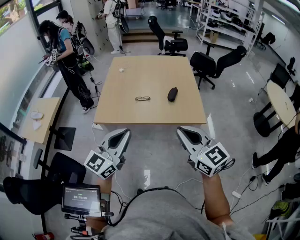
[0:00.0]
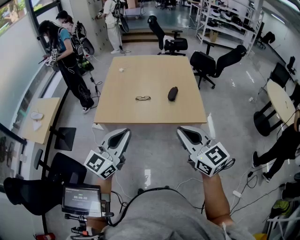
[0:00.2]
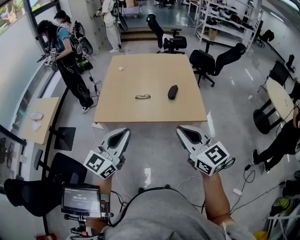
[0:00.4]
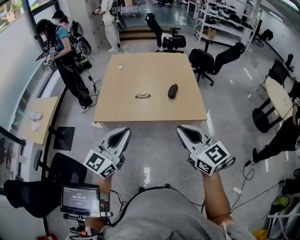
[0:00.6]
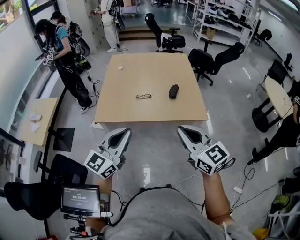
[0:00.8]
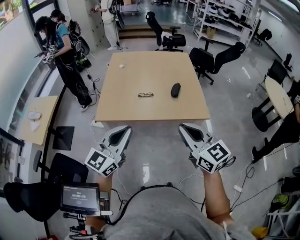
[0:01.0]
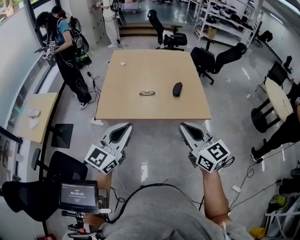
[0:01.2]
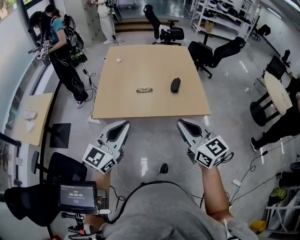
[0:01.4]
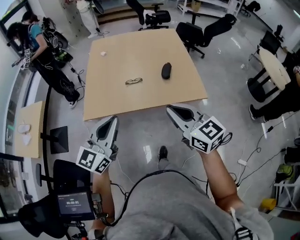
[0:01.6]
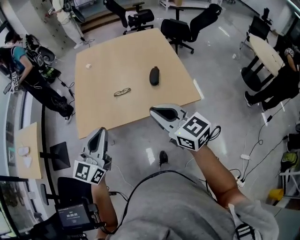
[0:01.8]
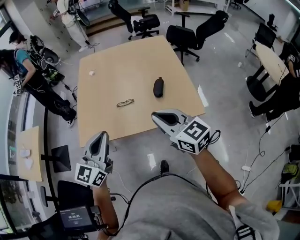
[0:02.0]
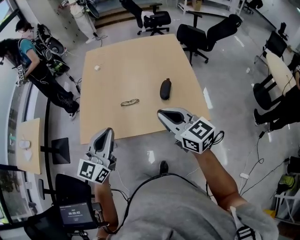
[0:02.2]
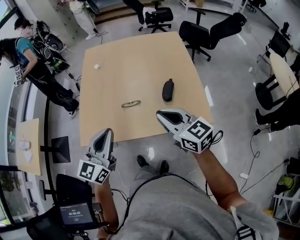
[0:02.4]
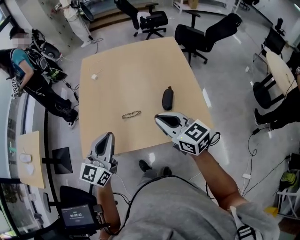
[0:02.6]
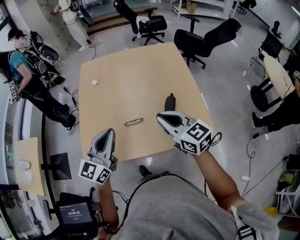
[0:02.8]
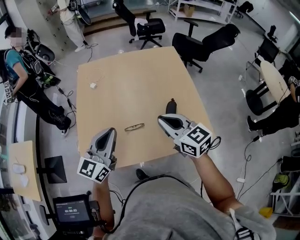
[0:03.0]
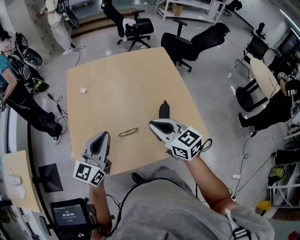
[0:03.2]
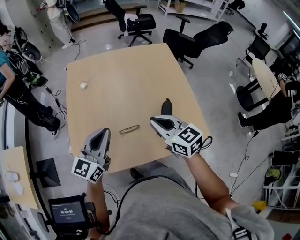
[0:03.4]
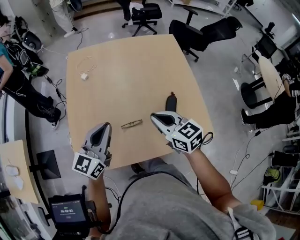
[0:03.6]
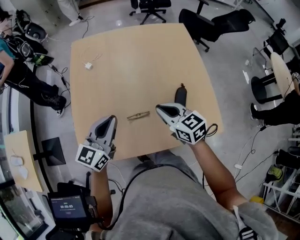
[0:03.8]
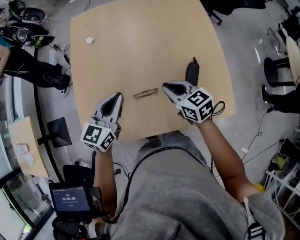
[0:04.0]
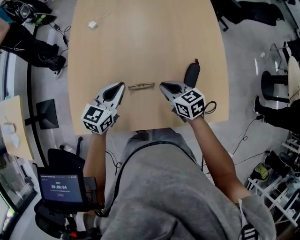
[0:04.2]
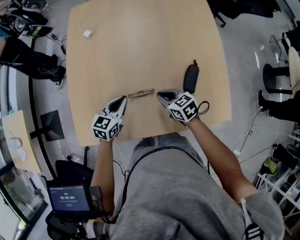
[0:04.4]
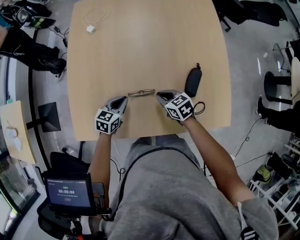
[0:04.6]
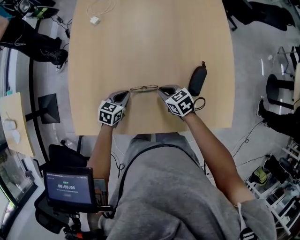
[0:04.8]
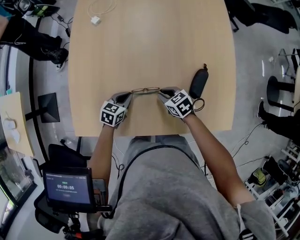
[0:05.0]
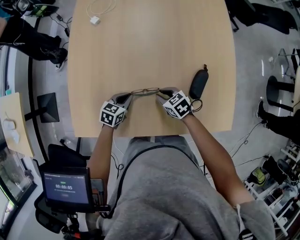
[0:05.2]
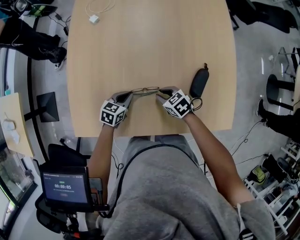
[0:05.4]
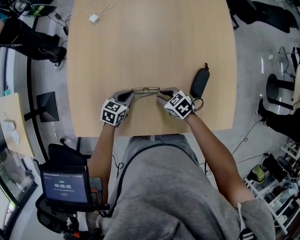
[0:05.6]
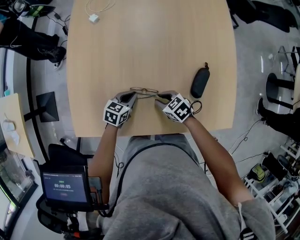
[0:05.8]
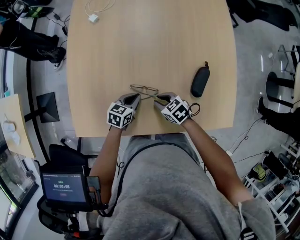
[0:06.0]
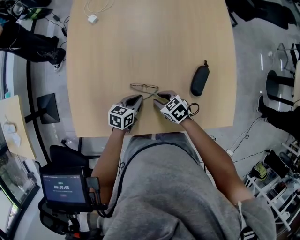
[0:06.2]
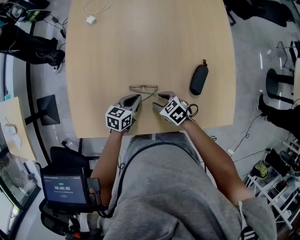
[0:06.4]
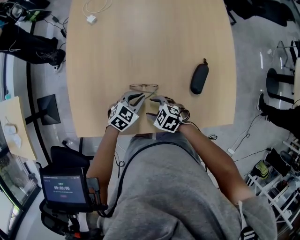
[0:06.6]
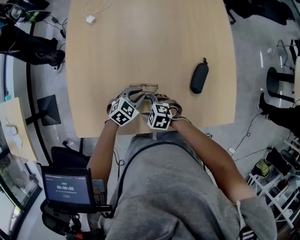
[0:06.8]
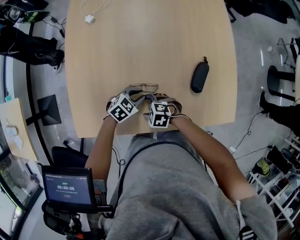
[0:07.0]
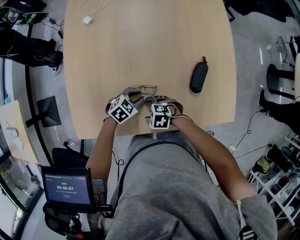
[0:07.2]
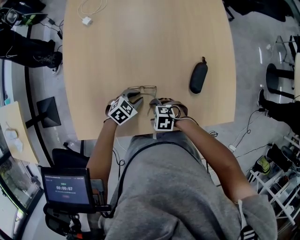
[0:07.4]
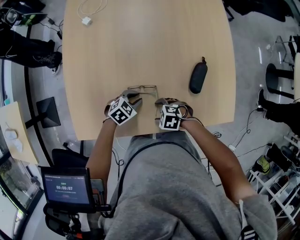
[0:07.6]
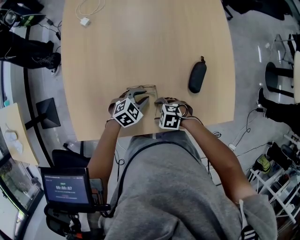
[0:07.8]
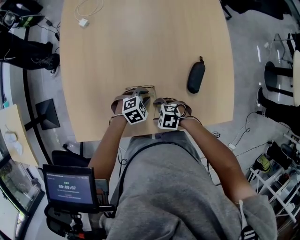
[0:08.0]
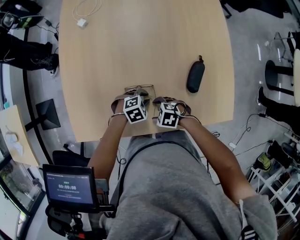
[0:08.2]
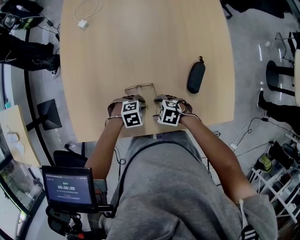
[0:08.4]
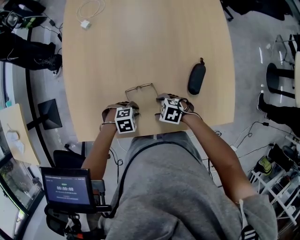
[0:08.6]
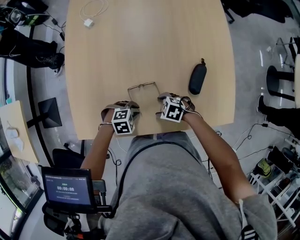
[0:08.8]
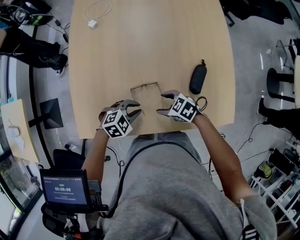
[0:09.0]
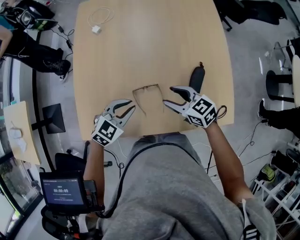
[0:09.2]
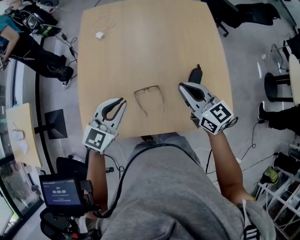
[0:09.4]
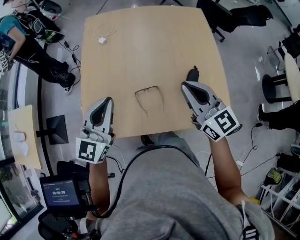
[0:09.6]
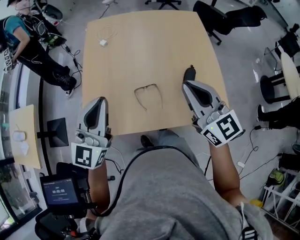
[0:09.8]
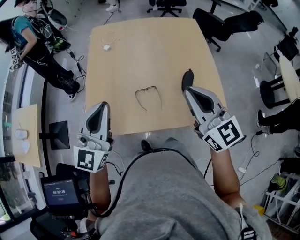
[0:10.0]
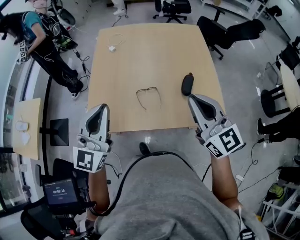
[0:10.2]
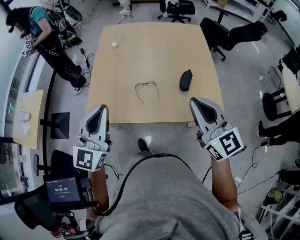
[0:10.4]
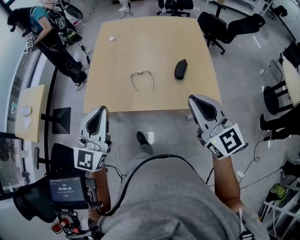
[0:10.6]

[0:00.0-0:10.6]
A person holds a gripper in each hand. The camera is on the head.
0:00.0 to 0:01.6: The right gripper heads forward, to the left and downward, covering approximately 15 cm; the left gripper heads forward and to the left, covering roughly 15 cm.
0:01.6 to 0:03.0: Both grippers move forward, some 35 cm.
0:03.0 to 0:04.6: The two grippers go approximately 35 cm downward. The left gripper tips its fingers downward by approximately 40 degrees. The right gripper angles its fingers downward, by about 30 degrees.
0:04.6 to 0:06.0: Both grippers travel together downward, approximately 5 cm.
0:06.0 to 0:07.6: The right gripper moves approximately 10 cm, rotates roughly 40 degrees, and opens up. Meanwhile the left gripper rotates approximately 40 degrees.
0:07.6 to 0:09.0: Both grippers travel together upward, about 5 cm. The right gripper rotates some 20 degrees.
0:09.0 to 0:10.6: Both grippers travel together upward, some 40 cm. The right gripper tilts its fingers about 50 degrees upward, and closes; the left gripper tips its fingers upward by about 60 degrees.

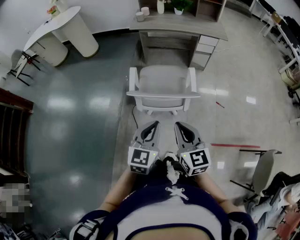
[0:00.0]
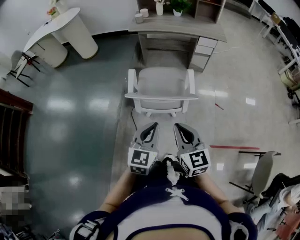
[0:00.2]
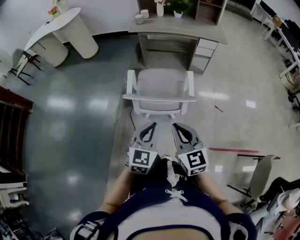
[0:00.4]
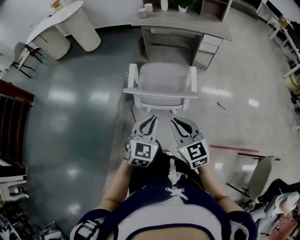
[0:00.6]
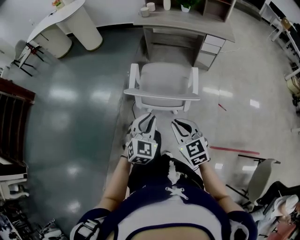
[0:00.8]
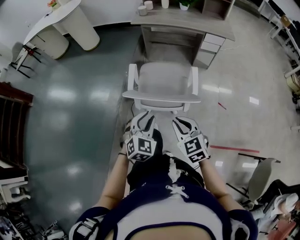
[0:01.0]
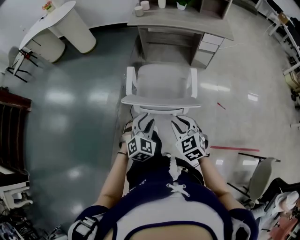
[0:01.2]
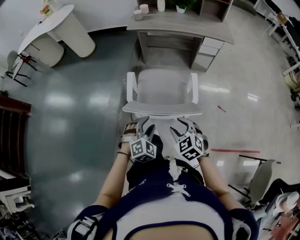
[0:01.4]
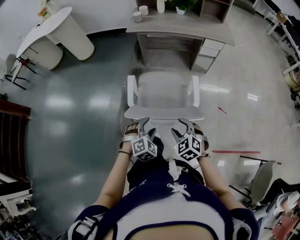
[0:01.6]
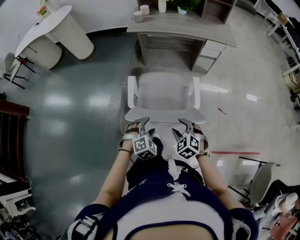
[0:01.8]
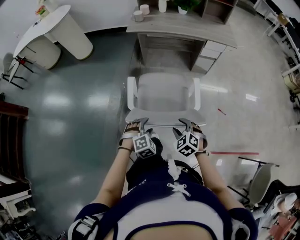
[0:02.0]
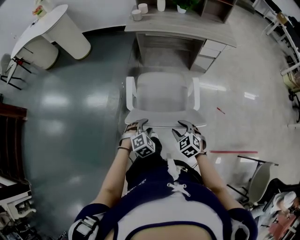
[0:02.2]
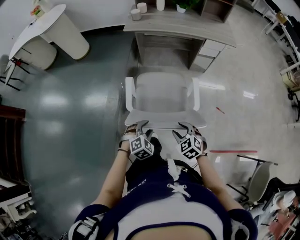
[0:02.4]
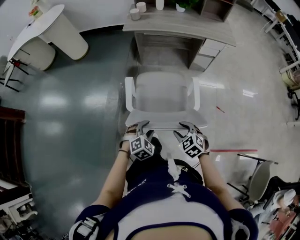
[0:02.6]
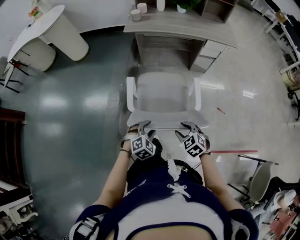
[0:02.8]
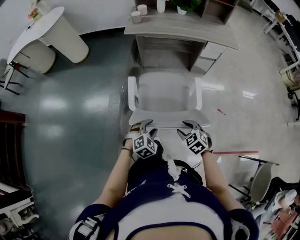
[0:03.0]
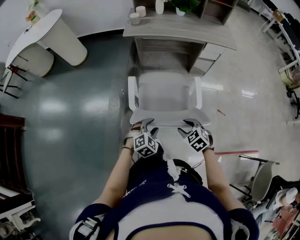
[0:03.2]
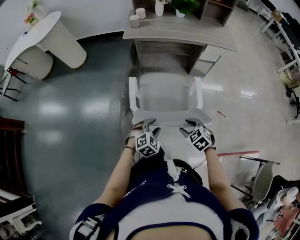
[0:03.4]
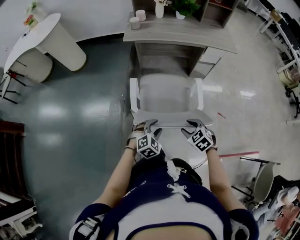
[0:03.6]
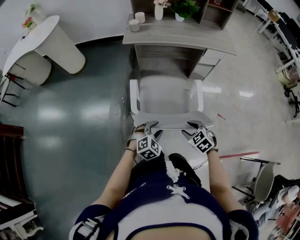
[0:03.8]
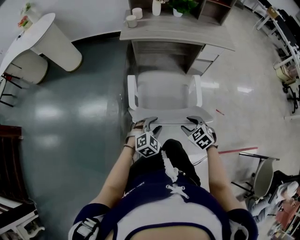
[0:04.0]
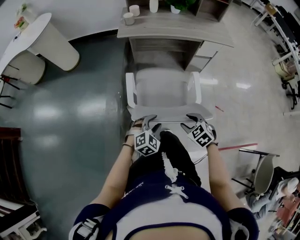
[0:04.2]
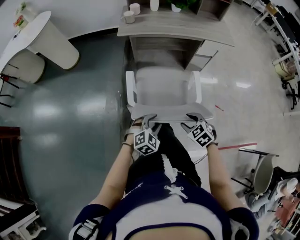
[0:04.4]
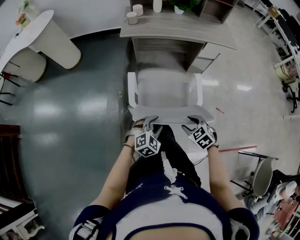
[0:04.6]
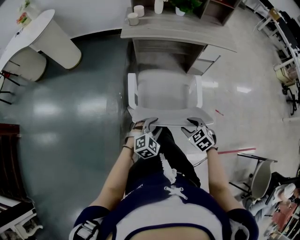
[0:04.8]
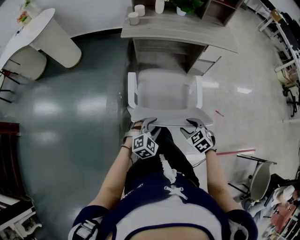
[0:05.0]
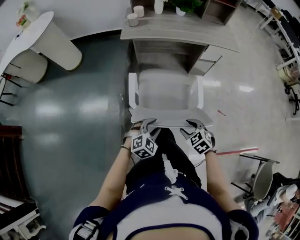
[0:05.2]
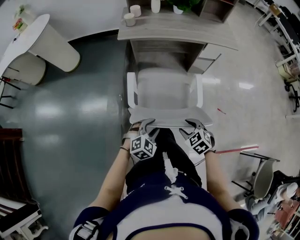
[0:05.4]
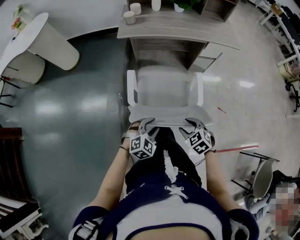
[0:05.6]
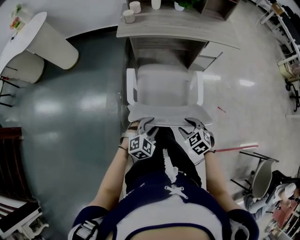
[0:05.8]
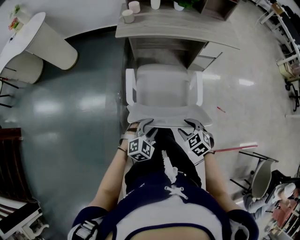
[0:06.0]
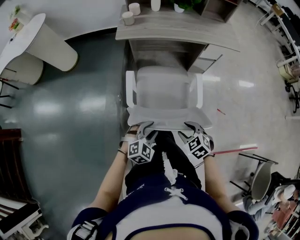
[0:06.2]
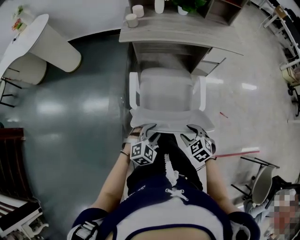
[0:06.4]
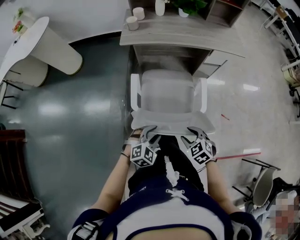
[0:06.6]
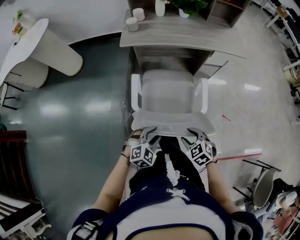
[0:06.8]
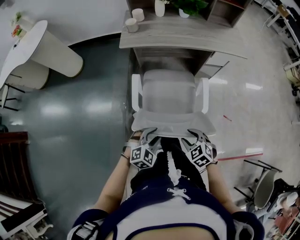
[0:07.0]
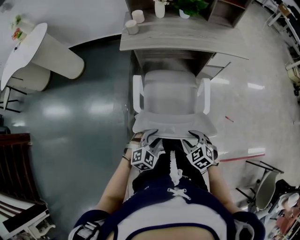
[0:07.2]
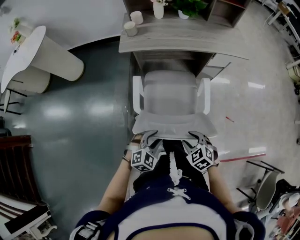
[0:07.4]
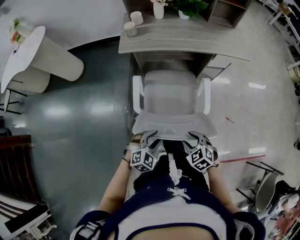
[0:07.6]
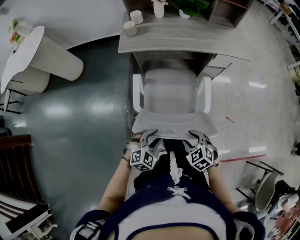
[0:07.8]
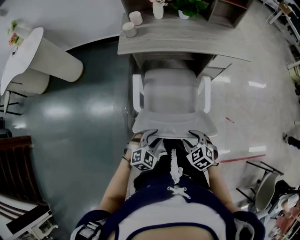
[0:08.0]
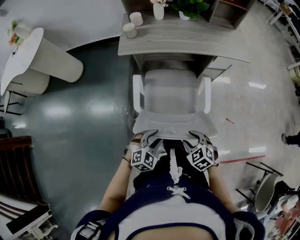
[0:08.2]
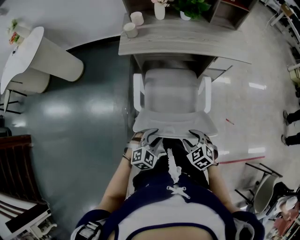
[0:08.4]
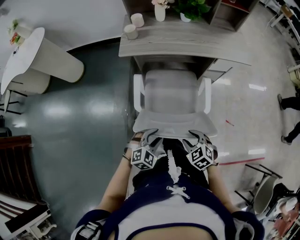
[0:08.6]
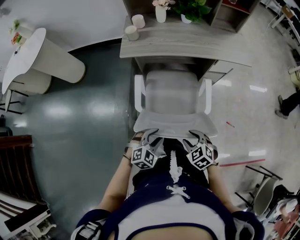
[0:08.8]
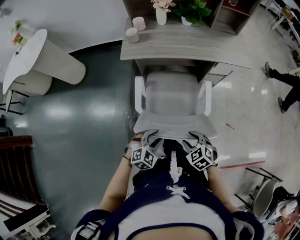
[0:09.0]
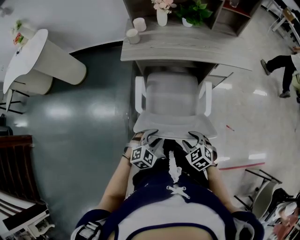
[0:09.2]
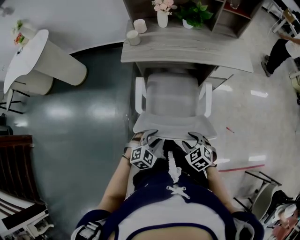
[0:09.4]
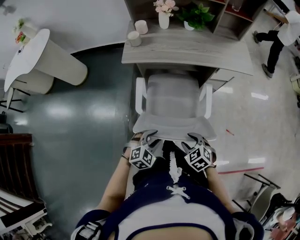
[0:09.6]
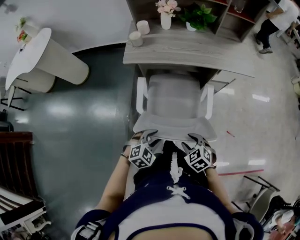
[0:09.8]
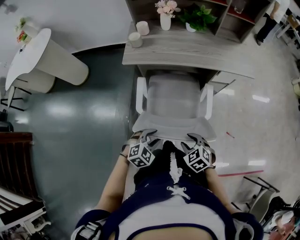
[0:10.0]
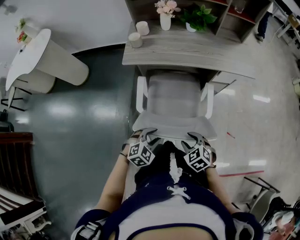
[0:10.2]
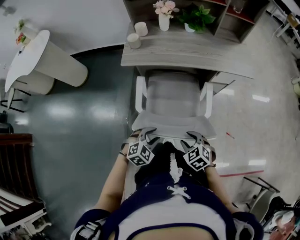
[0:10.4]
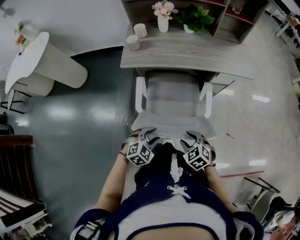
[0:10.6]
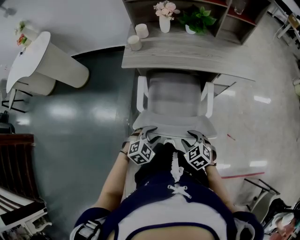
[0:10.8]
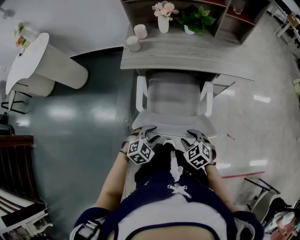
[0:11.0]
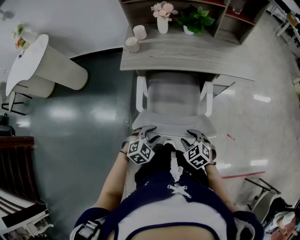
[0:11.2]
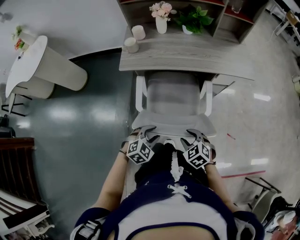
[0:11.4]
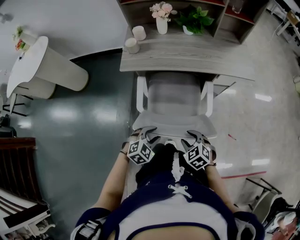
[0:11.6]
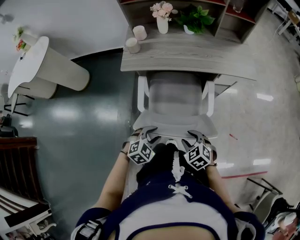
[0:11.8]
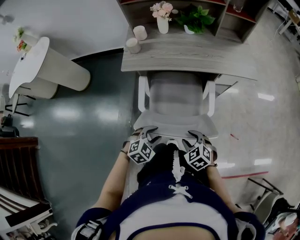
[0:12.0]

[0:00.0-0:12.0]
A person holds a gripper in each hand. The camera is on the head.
0:00.0 to 0:01.6: Both grippers travel together downward and forward, about 20 cm. The left gripper tilts its fingers about 30 degrees downward, and opens, while the right gripper tilts its fingers approximately 30 degrees downward, and opens.
0:01.6 to 0:03.0: The right gripper goes about 10 cm forward and downward; the left gripper travels forward by some 10 cm.
0:03.0 to 0:04.4: The grippers both shift forward by about 5 cm.
0:04.4 to 0:06.0: The grippers stay close to where they were, moving slightly.
0:06.0 to 0:07.6: Both grippers move forward, approximately 5 cm.
0:07.6 to 0:09.0: The grippers both shift forward by approximately 5 cm.
0:09.0 to 0:10.4: The two grippers go some 5 cm forward.
0:10.4 to 0:12.0: The grippers make only small movements.

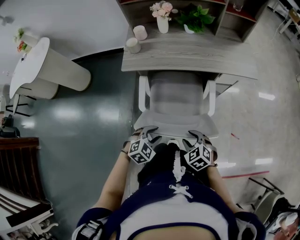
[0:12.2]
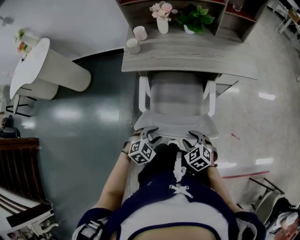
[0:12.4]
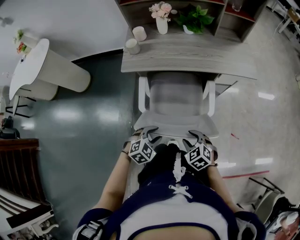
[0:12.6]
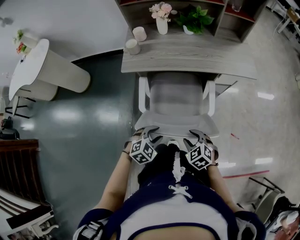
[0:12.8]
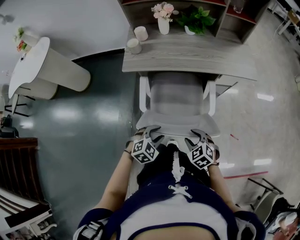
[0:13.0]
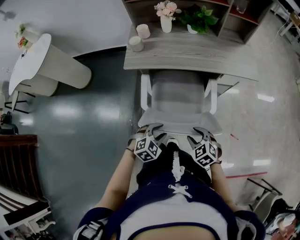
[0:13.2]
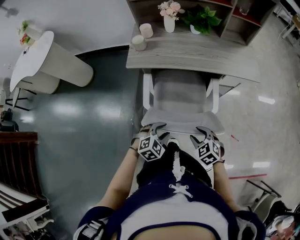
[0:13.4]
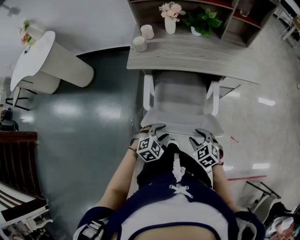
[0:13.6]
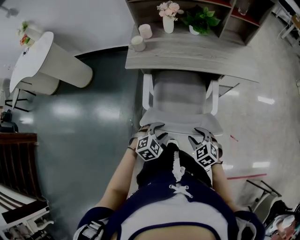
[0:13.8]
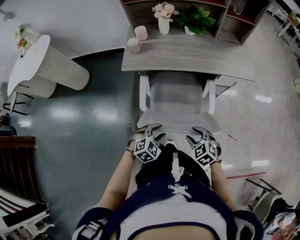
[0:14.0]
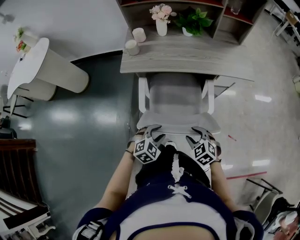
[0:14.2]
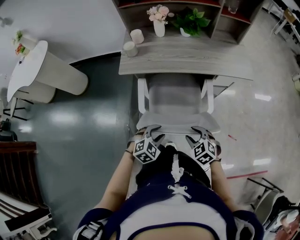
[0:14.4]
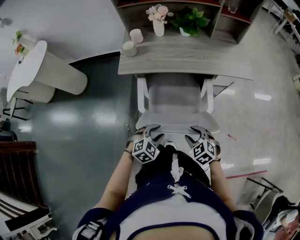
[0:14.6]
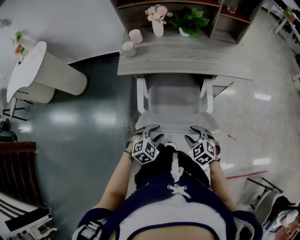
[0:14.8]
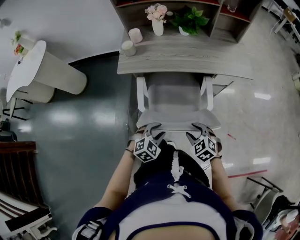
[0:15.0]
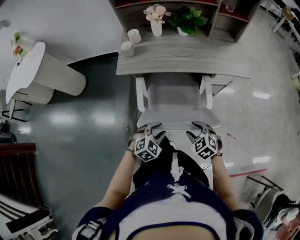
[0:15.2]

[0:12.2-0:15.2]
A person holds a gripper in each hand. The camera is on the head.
0:12.2 to 0:15.2: The grippers move only a little.
